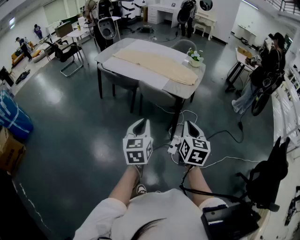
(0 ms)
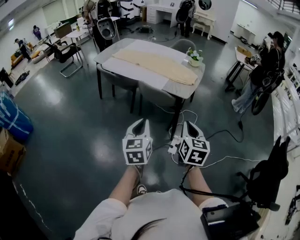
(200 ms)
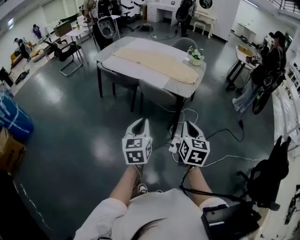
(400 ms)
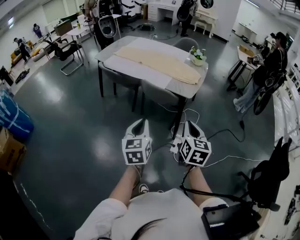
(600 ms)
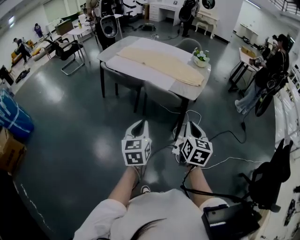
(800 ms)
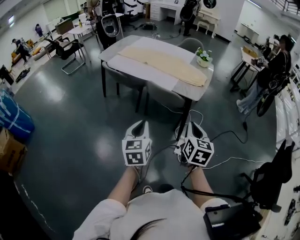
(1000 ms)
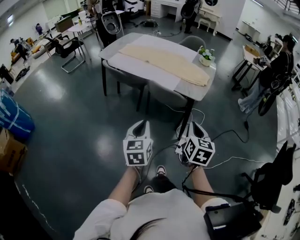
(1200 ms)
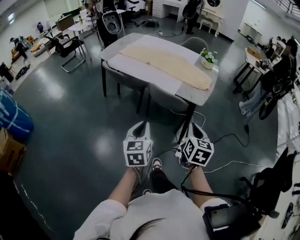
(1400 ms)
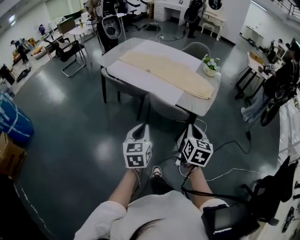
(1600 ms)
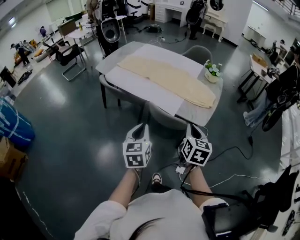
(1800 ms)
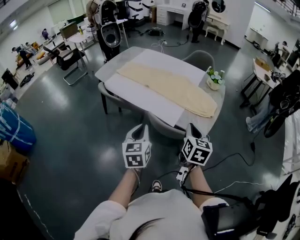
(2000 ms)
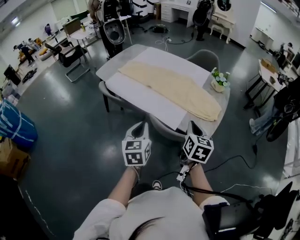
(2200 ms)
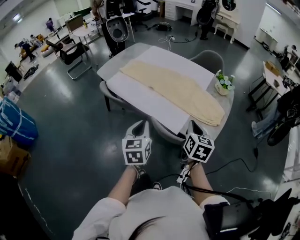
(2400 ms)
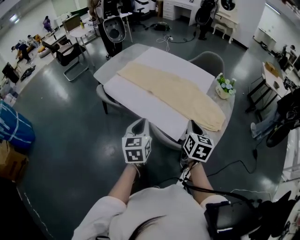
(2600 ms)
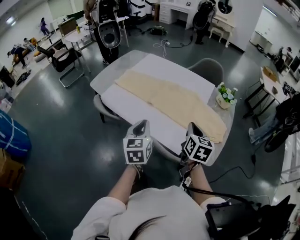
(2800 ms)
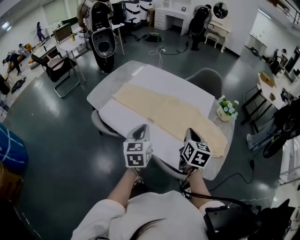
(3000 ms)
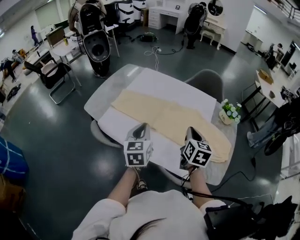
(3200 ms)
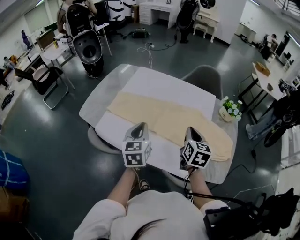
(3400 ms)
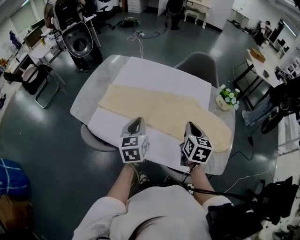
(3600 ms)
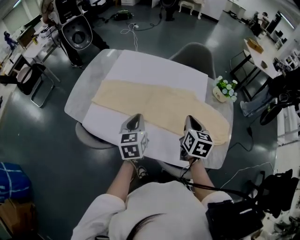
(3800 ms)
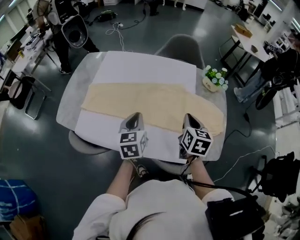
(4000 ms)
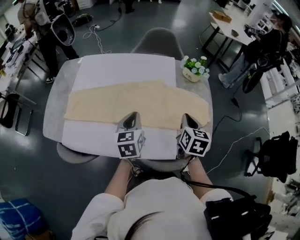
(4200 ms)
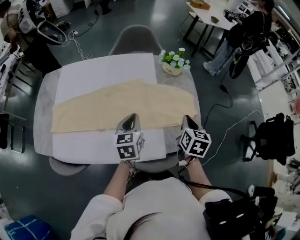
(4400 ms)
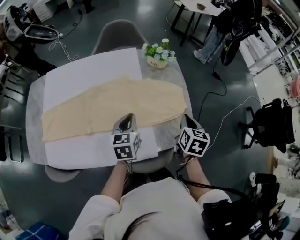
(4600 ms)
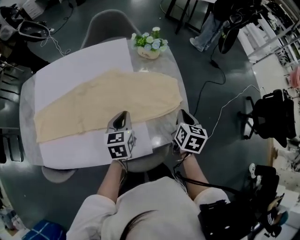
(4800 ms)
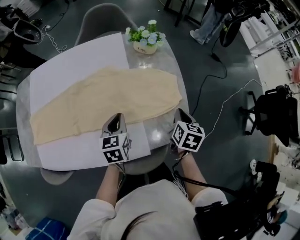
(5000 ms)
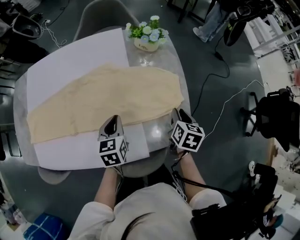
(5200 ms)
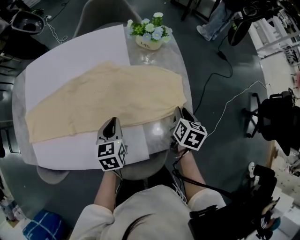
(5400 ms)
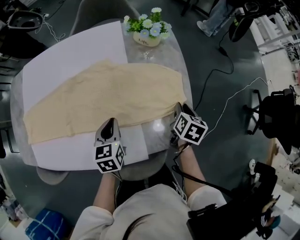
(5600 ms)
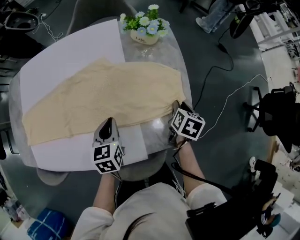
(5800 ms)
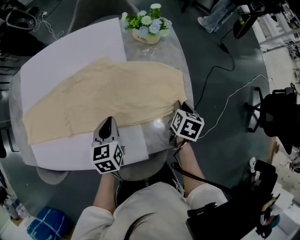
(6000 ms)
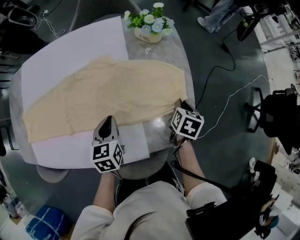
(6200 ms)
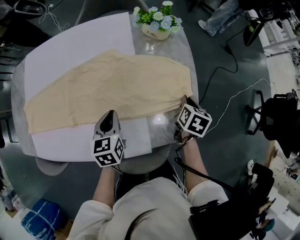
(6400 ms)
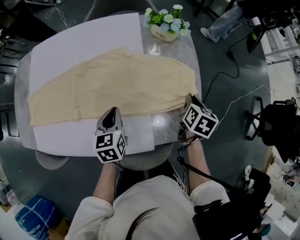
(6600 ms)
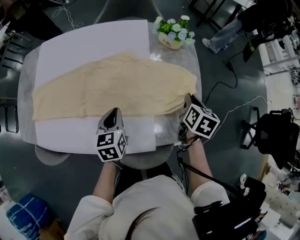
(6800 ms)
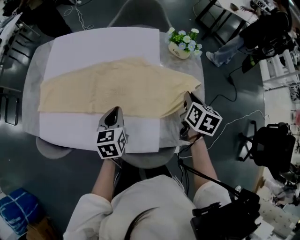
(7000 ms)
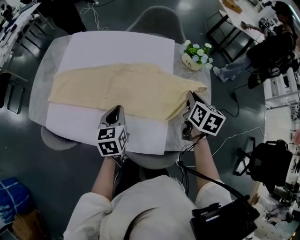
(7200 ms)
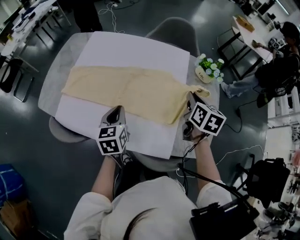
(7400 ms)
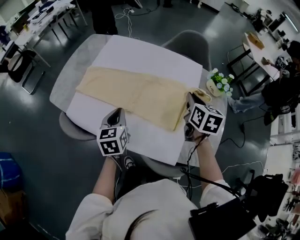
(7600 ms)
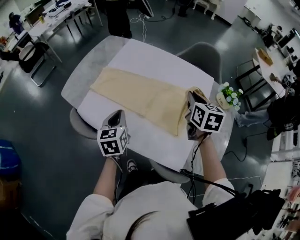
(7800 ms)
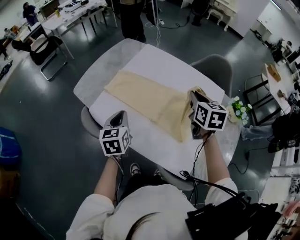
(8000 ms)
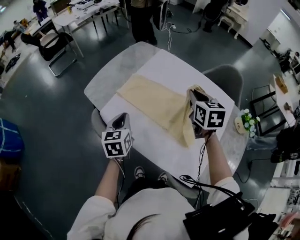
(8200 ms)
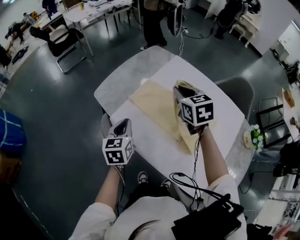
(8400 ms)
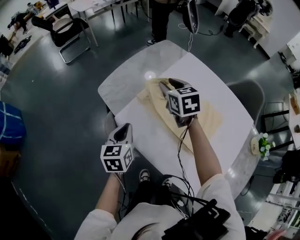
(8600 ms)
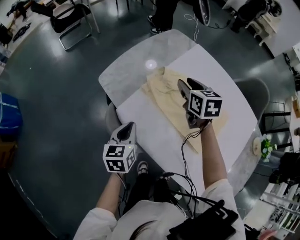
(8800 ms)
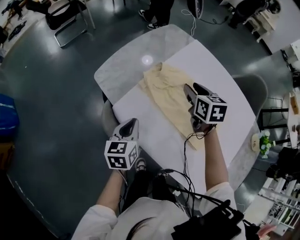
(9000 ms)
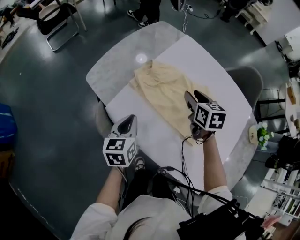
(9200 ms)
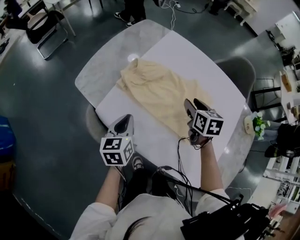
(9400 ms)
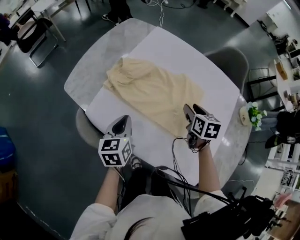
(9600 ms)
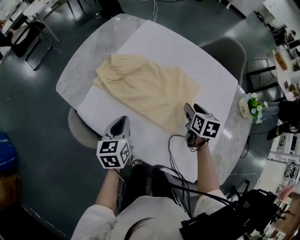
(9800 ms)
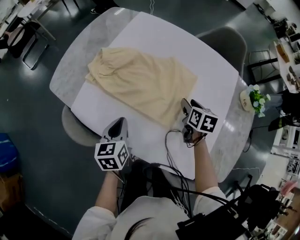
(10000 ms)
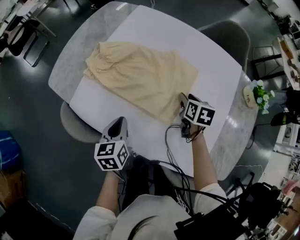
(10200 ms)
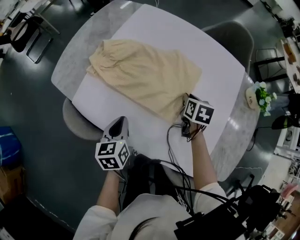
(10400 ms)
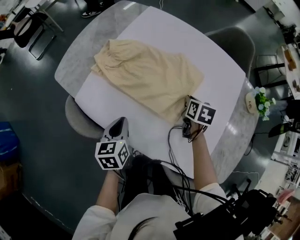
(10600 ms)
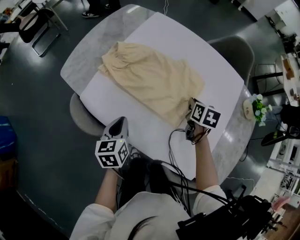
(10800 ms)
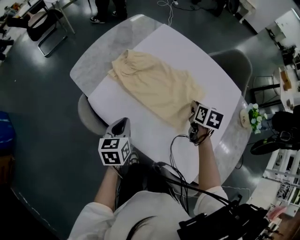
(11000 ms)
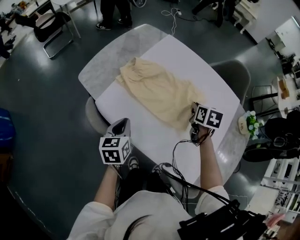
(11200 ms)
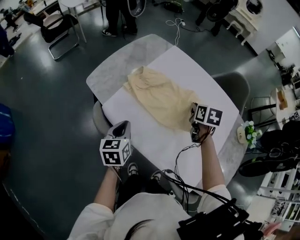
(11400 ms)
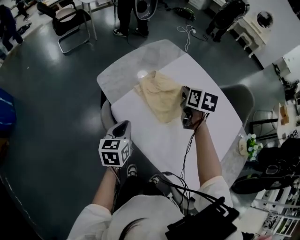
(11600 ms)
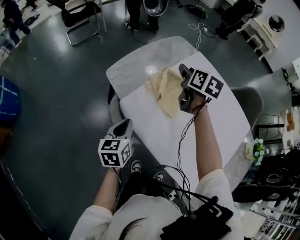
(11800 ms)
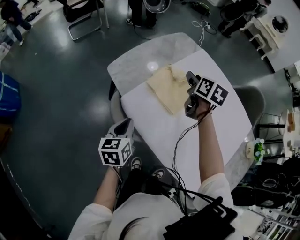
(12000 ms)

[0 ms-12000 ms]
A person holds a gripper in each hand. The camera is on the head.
0 ms to 1600 ms: The two grippers go about 20 cm forward and to the left.
1600 ms to 3000 ms: The pair of grippers is taken forward, some 50 cm.
3000 ms to 4400 ms: The right gripper shifts by roughly 20 cm, and turns by some 40 degrees, while the left gripper shifts by some 25 cm, and rotates some 40 degrees.
4400 ms to 6000 ms: The right gripper heads downward and to the right, covering roughly 25 cm, rotates roughly 20 degrees, and opens; the left gripper moves downward and to the right, about 15 cm.
6000 ms to 7600 ms: The right gripper changes place by about 40 cm, and rotates approximately 50 degrees. The left gripper moves roughly 30 cm, and turns by some 30 degrees.
7600 ms to 9000 ms: The left gripper moves about 30 cm, while the right gripper shifts by roughly 50 cm, turns by about 40 degrees, and opens.
9000 ms to 10400 ms: The right gripper goes some 35 cm to the right, downward and backward, swivels approximately 40 degrees, and closes its fingers, while the left gripper heads to the right, covering roughly 15 cm.
10400 ms to 12000 ms: The right gripper travels to the left, upward and forward by some 40 cm, rotates about 30 degrees, and opens; the left gripper goes some 20 cm to the left and upward.

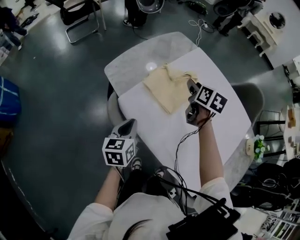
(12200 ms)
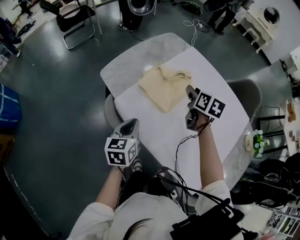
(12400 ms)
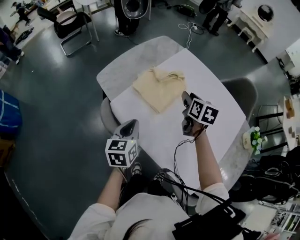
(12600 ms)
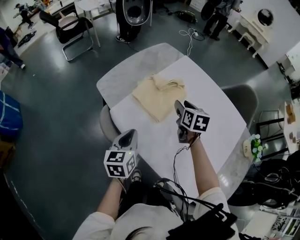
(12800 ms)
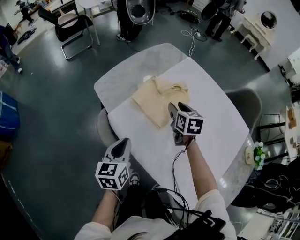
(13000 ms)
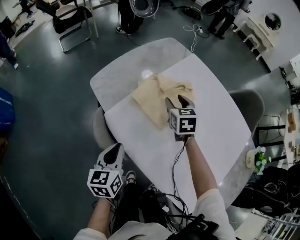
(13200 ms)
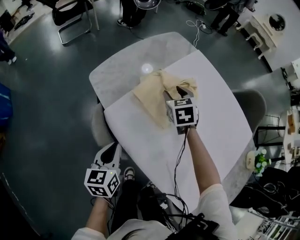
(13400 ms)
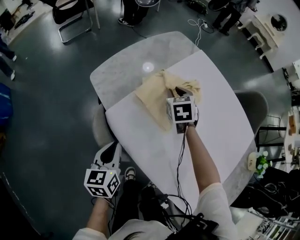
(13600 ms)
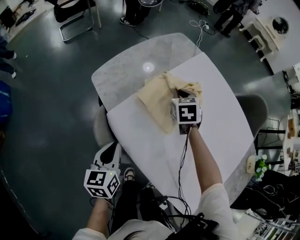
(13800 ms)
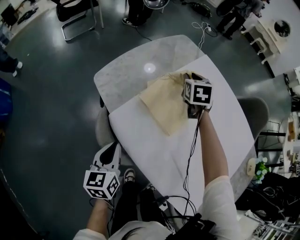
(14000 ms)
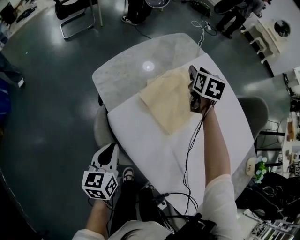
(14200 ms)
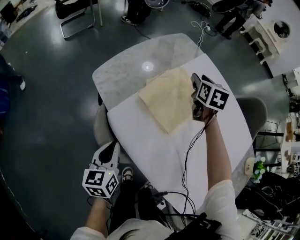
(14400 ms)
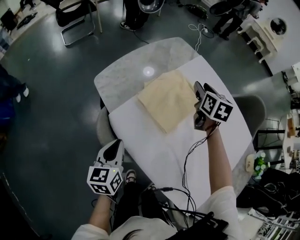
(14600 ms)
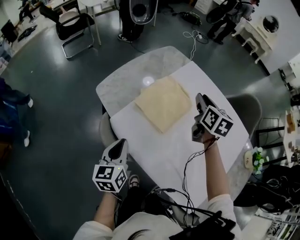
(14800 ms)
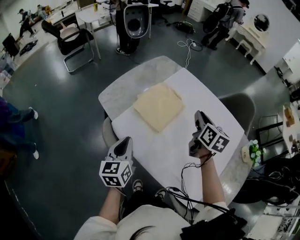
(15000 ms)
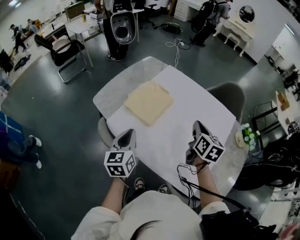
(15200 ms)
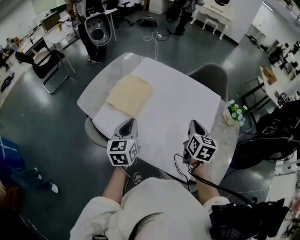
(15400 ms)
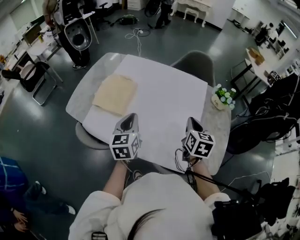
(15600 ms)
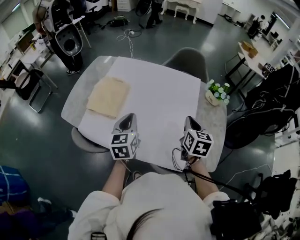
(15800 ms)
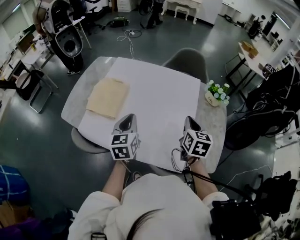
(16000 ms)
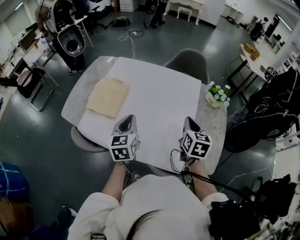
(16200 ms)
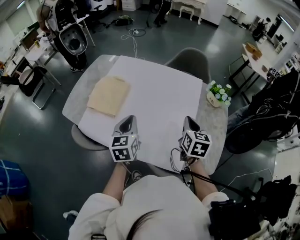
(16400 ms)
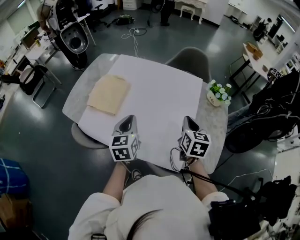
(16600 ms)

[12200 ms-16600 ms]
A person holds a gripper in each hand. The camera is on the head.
12200 ms to 13600 ms: The right gripper heads downward, to the left and forward, covering approximately 15 cm, and turns by some 40 degrees. The left gripper is displaced downward by roughly 5 cm.
13600 ms to 15200 ms: The left gripper heads upward and to the right, covering approximately 20 cm. Meanwhile the right gripper travels backward, to the right and upward by some 40 cm, rolls clockwise, seen from behind, by approximately 40 degrees, and closes its fingers.
15200 ms to 16600 ms: The right gripper moves to the right and backward, some 20 cm. The left gripper heads to the right, covering about 20 cm.

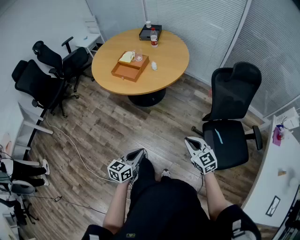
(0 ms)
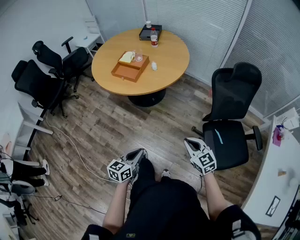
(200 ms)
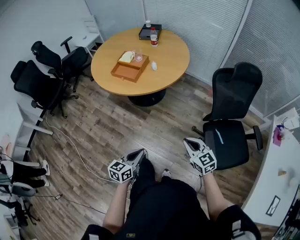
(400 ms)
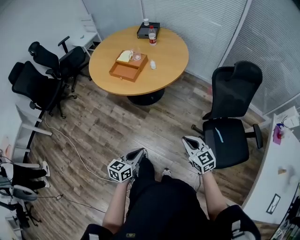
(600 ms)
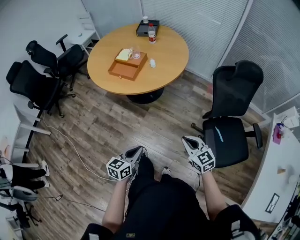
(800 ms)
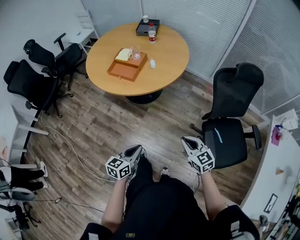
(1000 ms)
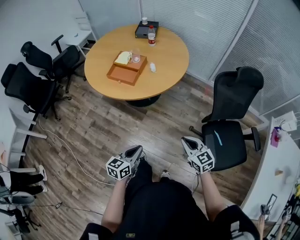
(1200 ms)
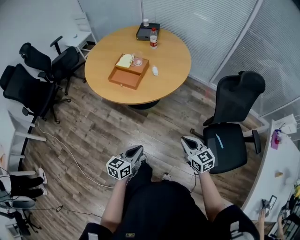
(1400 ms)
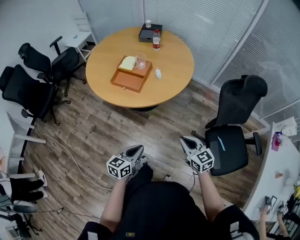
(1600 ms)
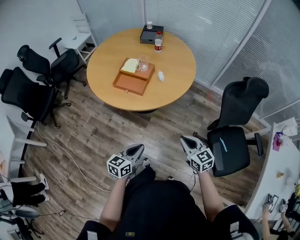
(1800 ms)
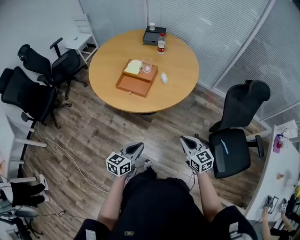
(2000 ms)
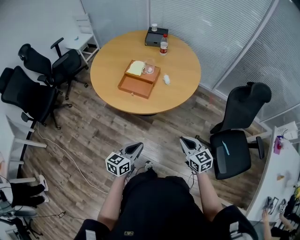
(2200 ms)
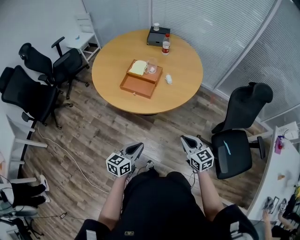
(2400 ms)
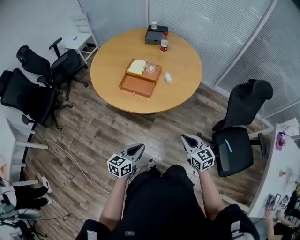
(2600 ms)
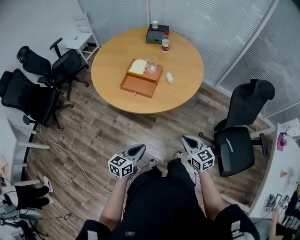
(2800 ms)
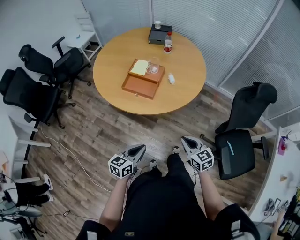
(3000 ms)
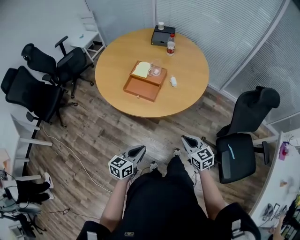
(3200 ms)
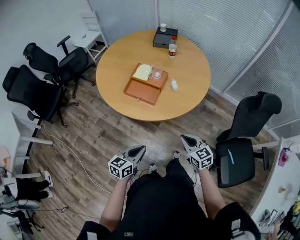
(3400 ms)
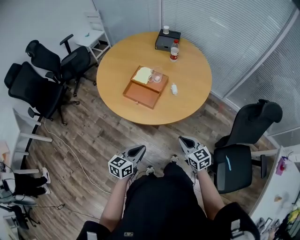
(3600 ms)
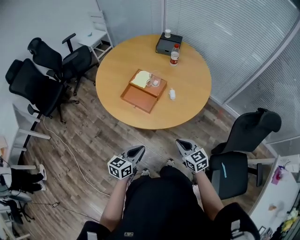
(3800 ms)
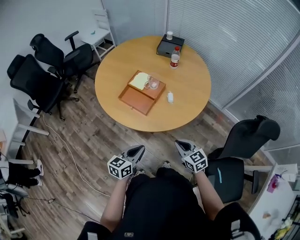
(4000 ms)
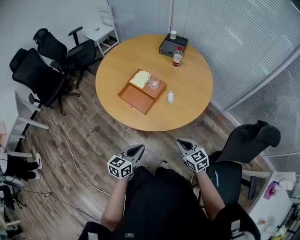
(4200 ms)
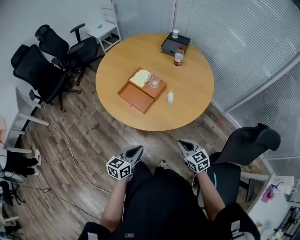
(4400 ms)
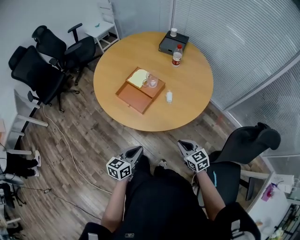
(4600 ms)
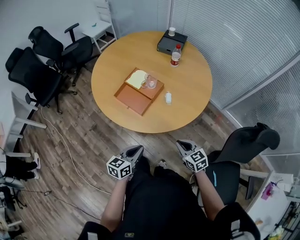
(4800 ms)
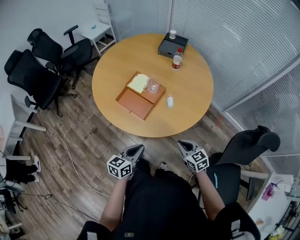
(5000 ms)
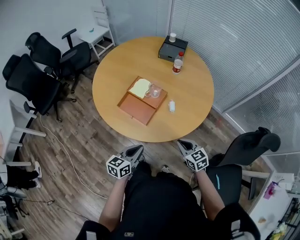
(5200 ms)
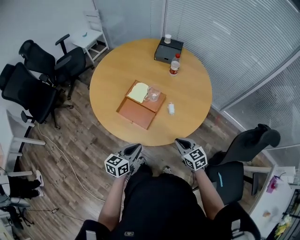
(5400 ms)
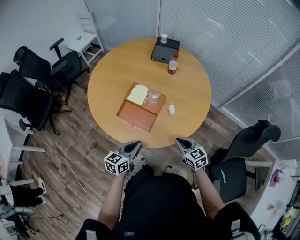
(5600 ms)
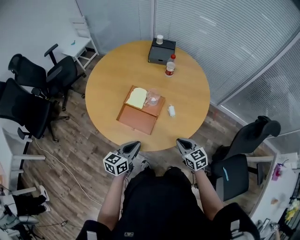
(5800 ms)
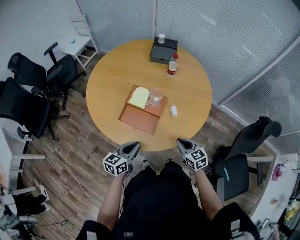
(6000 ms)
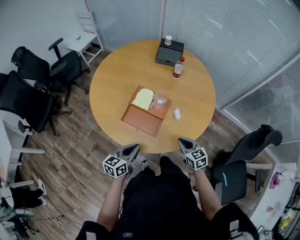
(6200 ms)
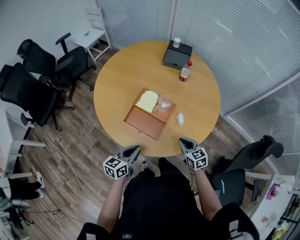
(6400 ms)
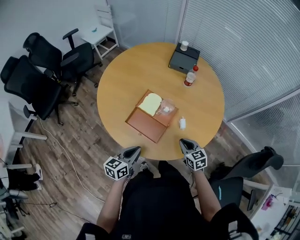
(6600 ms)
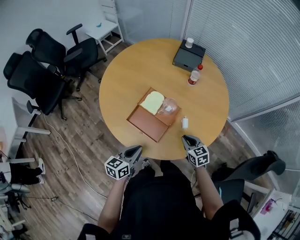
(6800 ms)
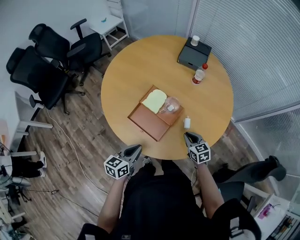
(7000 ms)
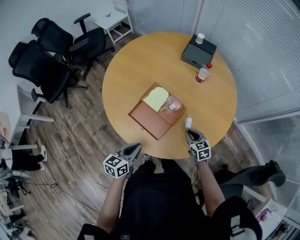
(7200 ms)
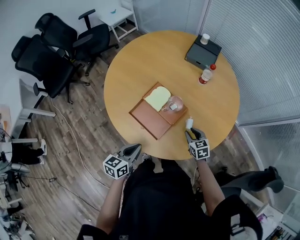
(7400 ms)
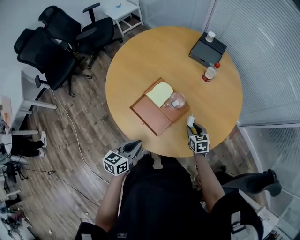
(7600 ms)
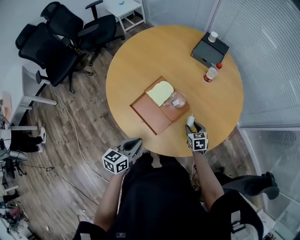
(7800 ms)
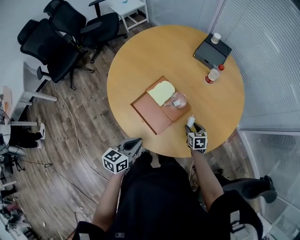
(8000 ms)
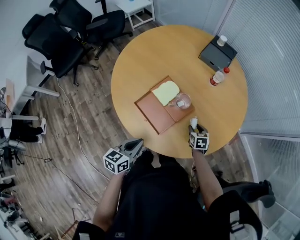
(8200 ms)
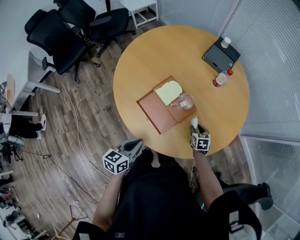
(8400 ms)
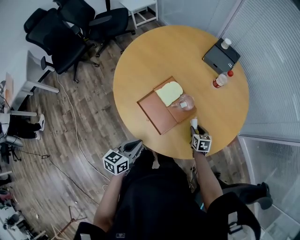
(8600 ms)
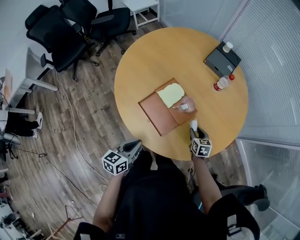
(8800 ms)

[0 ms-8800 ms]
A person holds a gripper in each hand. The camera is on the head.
0 ms to 1400 ms: The two grippers go approximately 15 cm forward and to the left.
1400 ms to 3000 ms: The grippers both shift to the left and forward by roughly 15 cm.
3000 ms to 4400 ms: The right gripper heads forward and to the right, covering approximately 15 cm, and turns by approximately 20 degrees. The left gripper is displaced to the right and forward by some 15 cm.
4400 ms to 5800 ms: Both grippers move forward and to the left, some 15 cm.
5800 ms to 7400 ms: The right gripper goes about 20 cm forward and downward, and opens up, while the left gripper turns by approximately 20 degrees.
